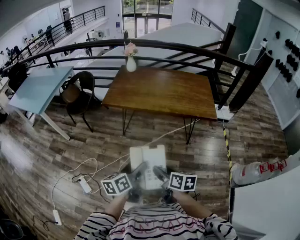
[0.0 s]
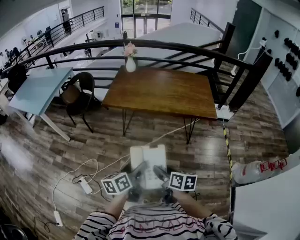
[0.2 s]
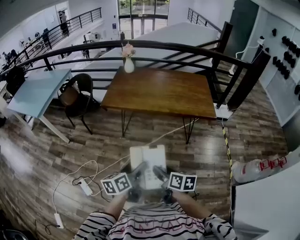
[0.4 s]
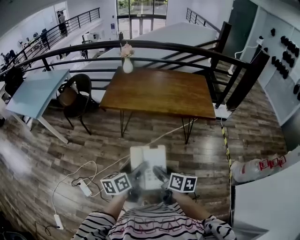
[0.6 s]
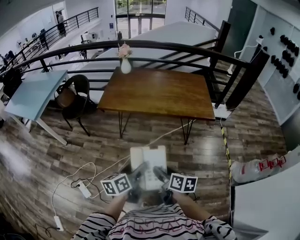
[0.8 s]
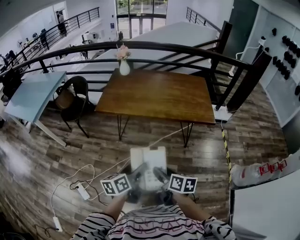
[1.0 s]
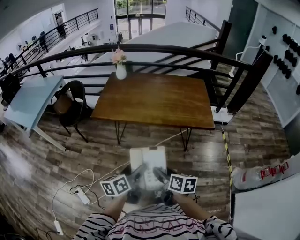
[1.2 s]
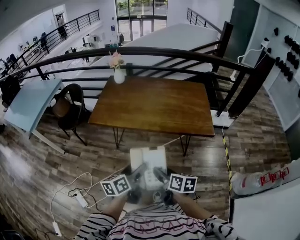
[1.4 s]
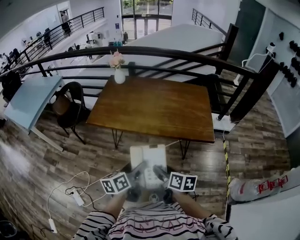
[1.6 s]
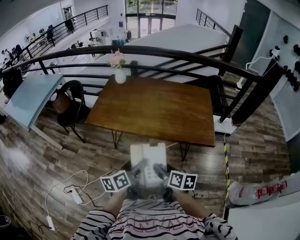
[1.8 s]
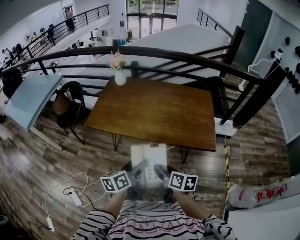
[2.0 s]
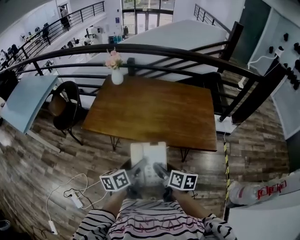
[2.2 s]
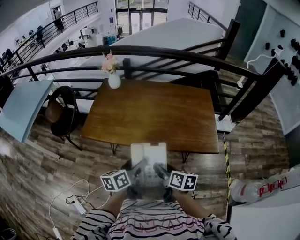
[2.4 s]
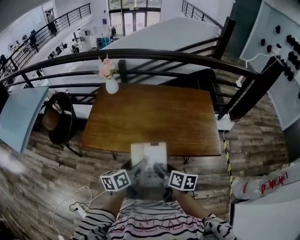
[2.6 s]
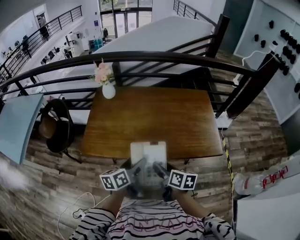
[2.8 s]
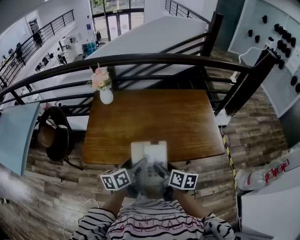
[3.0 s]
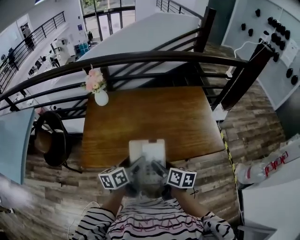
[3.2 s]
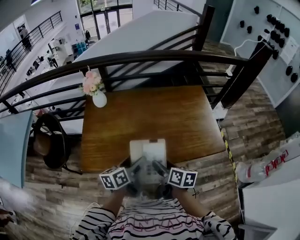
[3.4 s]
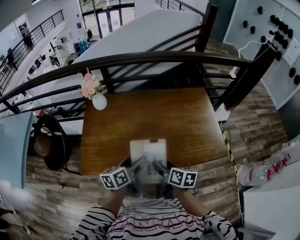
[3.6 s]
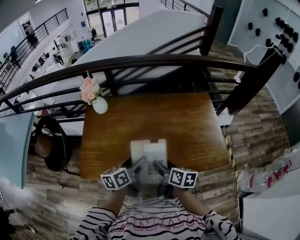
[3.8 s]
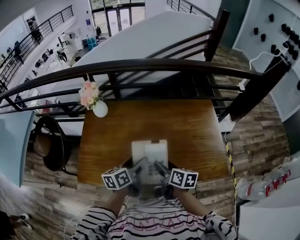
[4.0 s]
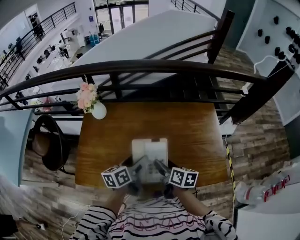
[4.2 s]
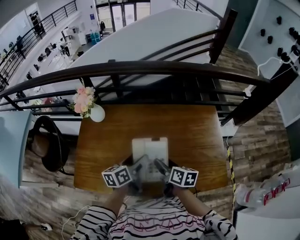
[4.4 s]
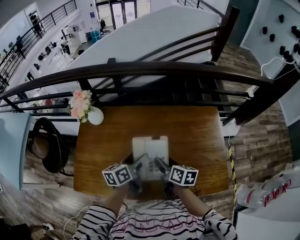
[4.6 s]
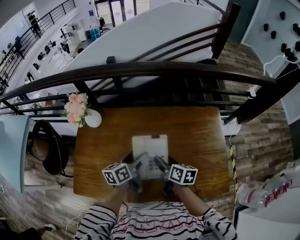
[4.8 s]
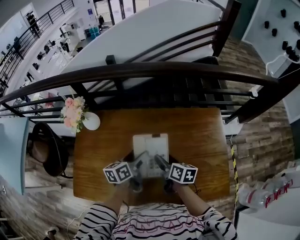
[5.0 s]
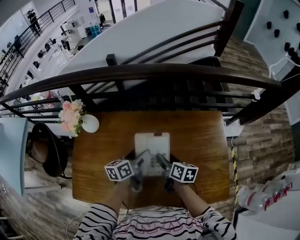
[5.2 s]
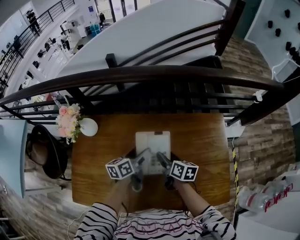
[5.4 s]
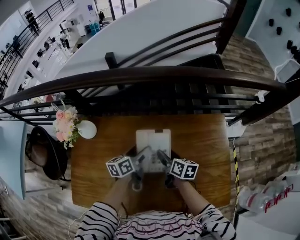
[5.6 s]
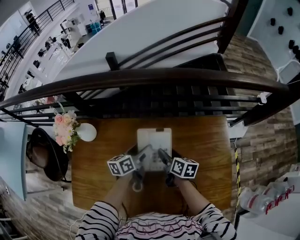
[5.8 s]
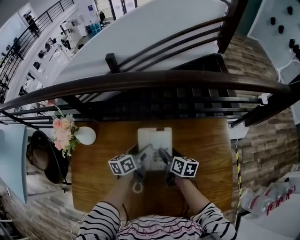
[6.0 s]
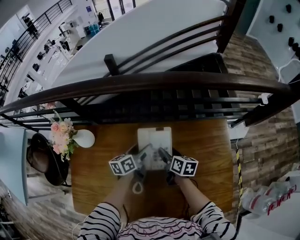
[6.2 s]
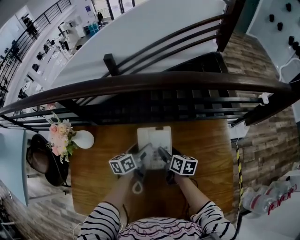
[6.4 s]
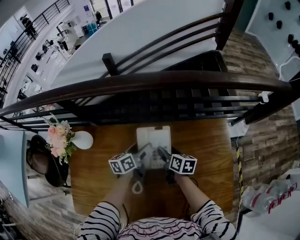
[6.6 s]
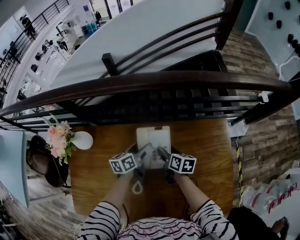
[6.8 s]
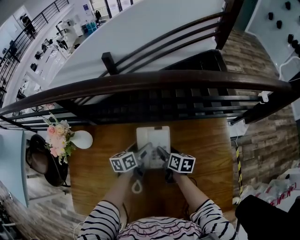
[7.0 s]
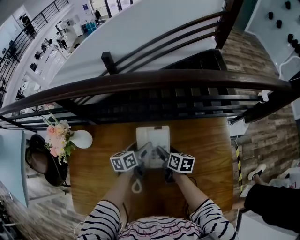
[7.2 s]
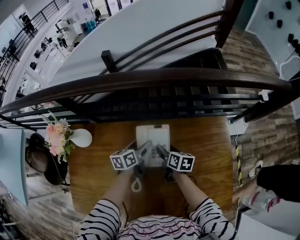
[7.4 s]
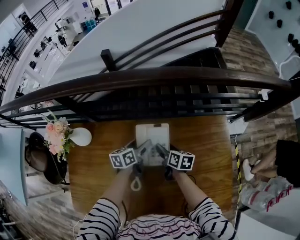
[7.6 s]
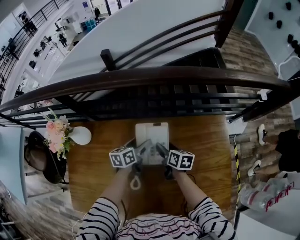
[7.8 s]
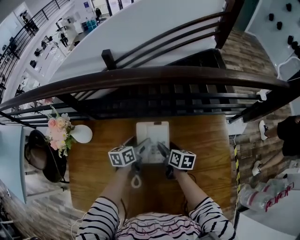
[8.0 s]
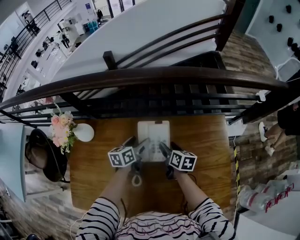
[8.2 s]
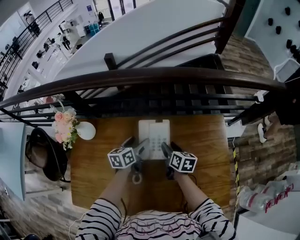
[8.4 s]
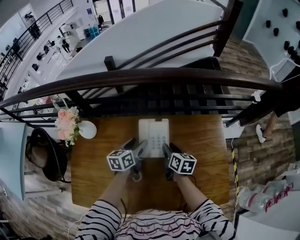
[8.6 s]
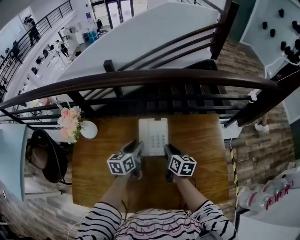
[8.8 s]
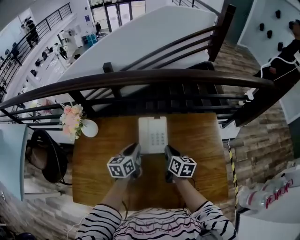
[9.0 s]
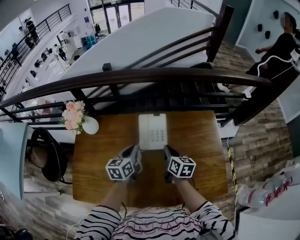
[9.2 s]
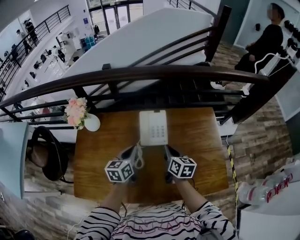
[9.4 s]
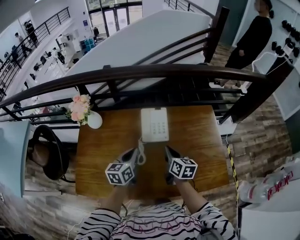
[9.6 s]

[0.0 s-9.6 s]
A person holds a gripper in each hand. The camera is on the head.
0.0 to 1.6 s: Both grippers move forward and to the right, about 30 cm.
1.6 to 3.2 s: Both grippers travel together forward, approximately 35 cm.
3.2 to 4.8 s: The two grippers go roughly 35 cm forward.
4.8 to 6.4 s: Both grippers move forward, roughly 25 cm.
6.4 to 8.0 s: The grippers move only a little.
8.0 to 9.6 s: Both grippers move backward and upward, roughly 30 cm. The right gripper closes. The left gripper closes up.

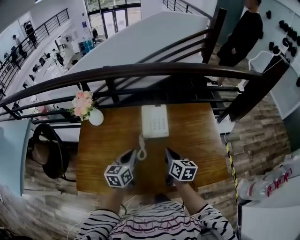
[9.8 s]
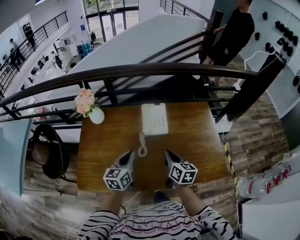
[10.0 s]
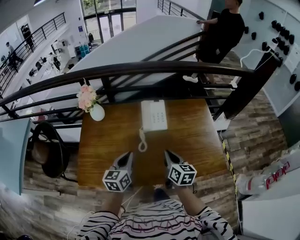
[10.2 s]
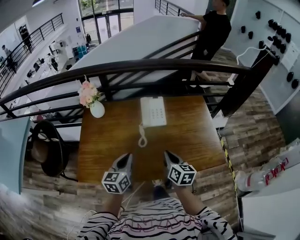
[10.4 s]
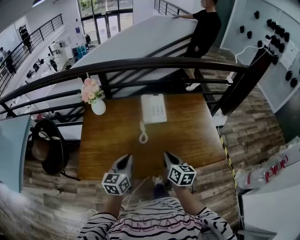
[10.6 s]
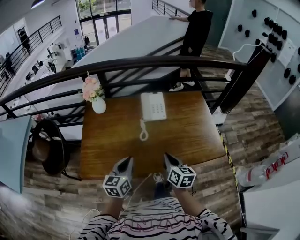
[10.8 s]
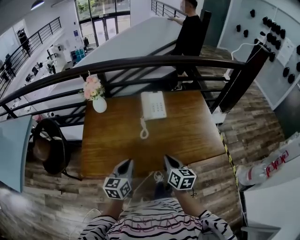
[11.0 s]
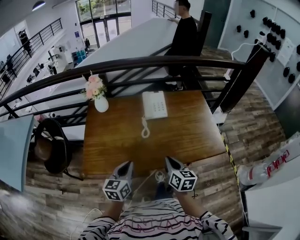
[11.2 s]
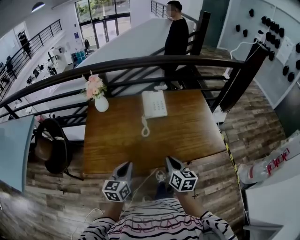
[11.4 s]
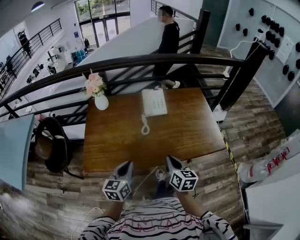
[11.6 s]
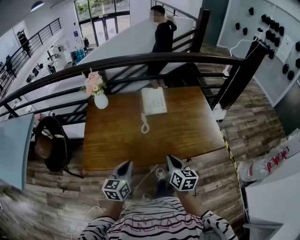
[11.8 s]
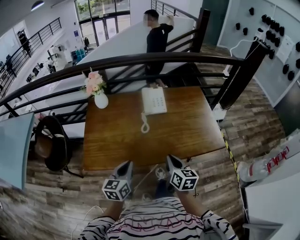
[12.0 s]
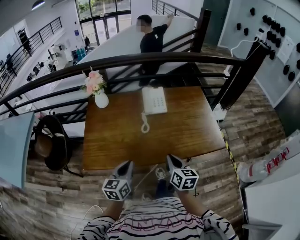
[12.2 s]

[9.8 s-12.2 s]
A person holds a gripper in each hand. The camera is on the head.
9.8 to 11.0 s: Both grippers move backward, about 25 cm.
11.0 to 12.2 s: The right gripper shifts by approximately 5 cm; the left gripper moves backward, approximately 5 cm.

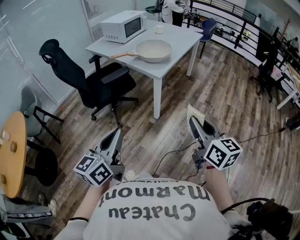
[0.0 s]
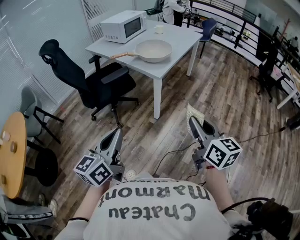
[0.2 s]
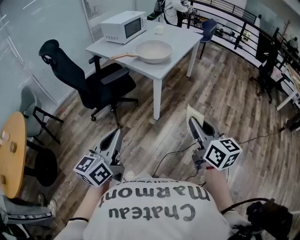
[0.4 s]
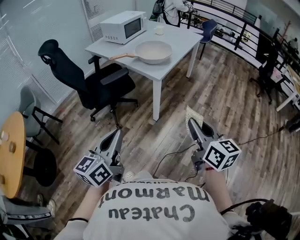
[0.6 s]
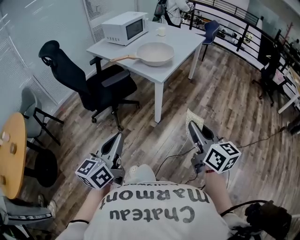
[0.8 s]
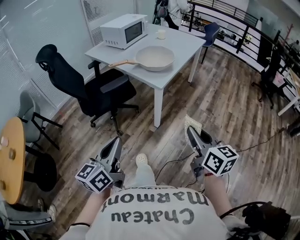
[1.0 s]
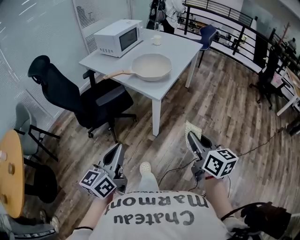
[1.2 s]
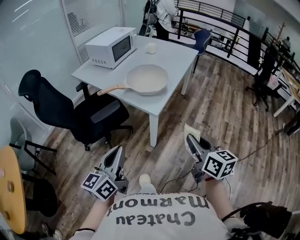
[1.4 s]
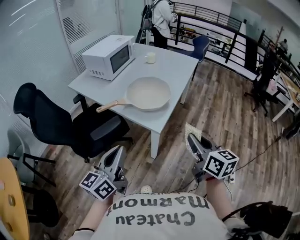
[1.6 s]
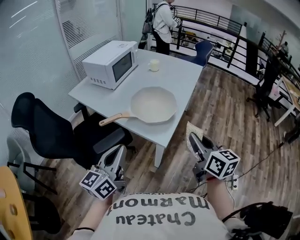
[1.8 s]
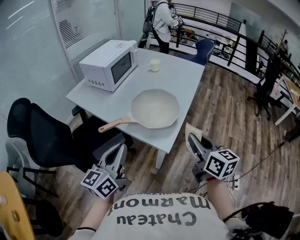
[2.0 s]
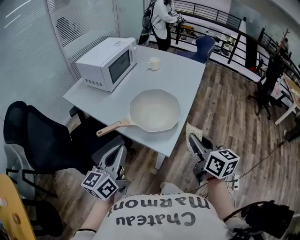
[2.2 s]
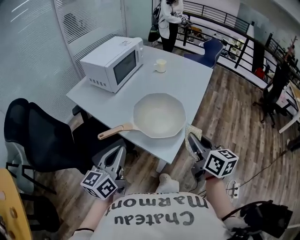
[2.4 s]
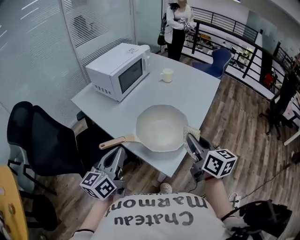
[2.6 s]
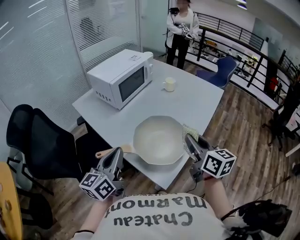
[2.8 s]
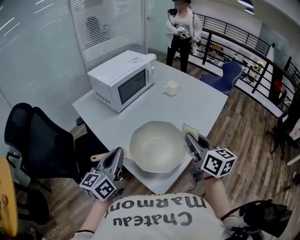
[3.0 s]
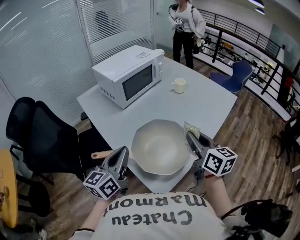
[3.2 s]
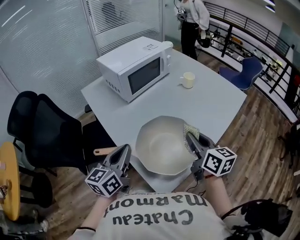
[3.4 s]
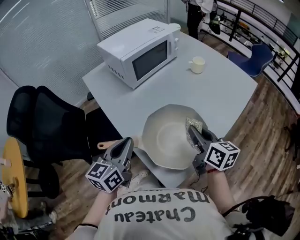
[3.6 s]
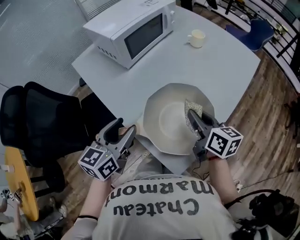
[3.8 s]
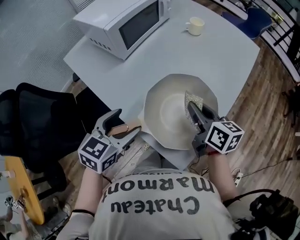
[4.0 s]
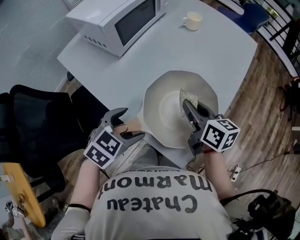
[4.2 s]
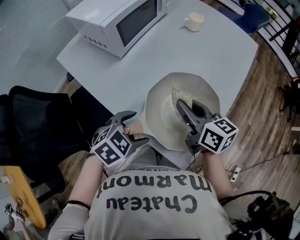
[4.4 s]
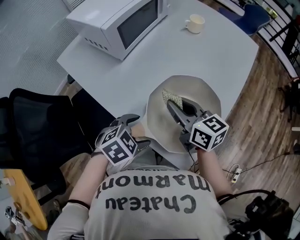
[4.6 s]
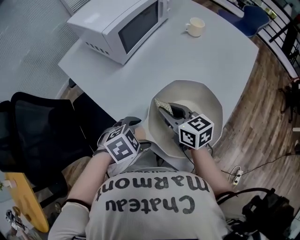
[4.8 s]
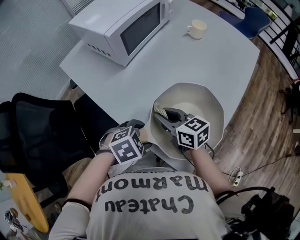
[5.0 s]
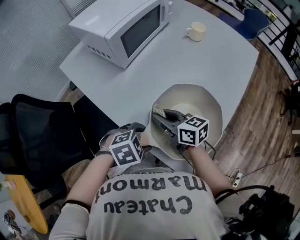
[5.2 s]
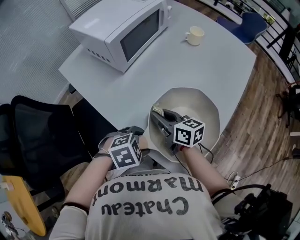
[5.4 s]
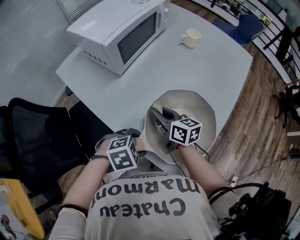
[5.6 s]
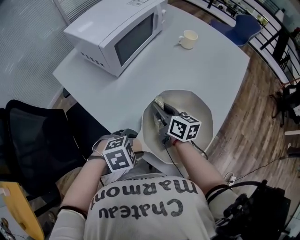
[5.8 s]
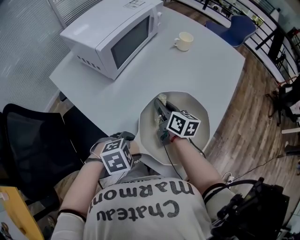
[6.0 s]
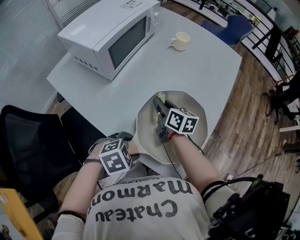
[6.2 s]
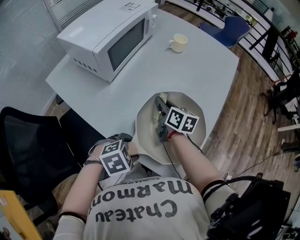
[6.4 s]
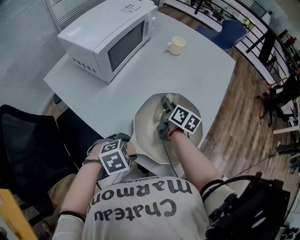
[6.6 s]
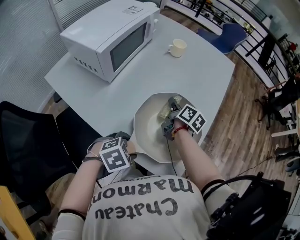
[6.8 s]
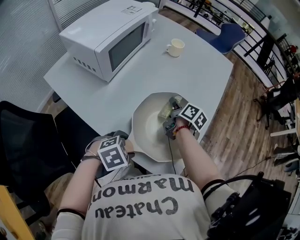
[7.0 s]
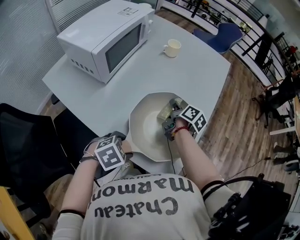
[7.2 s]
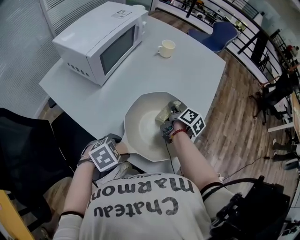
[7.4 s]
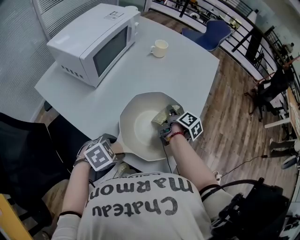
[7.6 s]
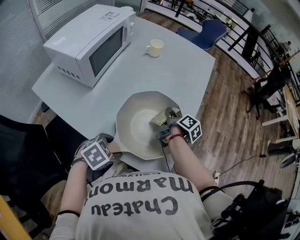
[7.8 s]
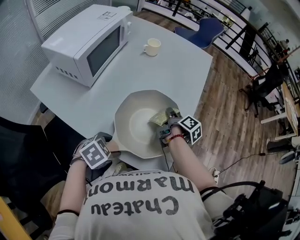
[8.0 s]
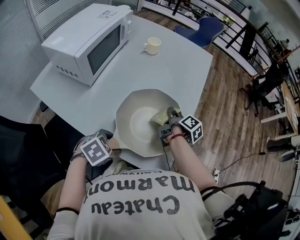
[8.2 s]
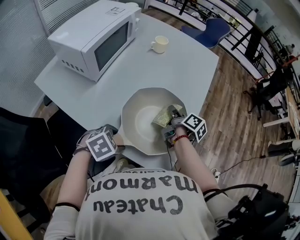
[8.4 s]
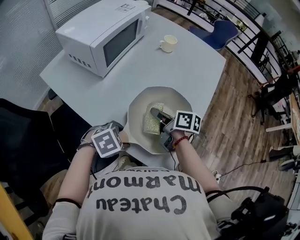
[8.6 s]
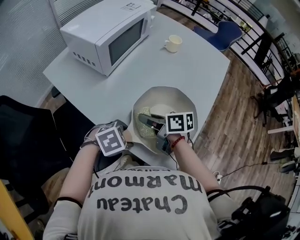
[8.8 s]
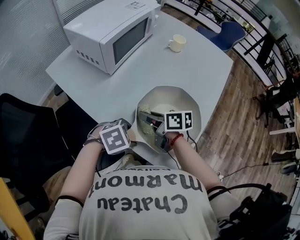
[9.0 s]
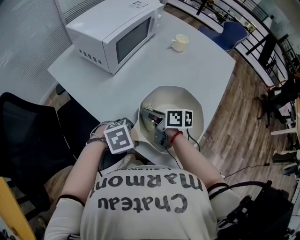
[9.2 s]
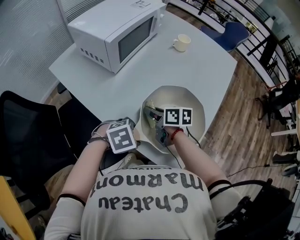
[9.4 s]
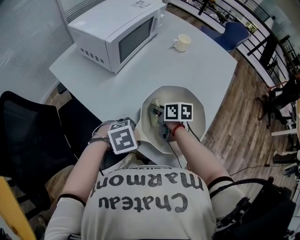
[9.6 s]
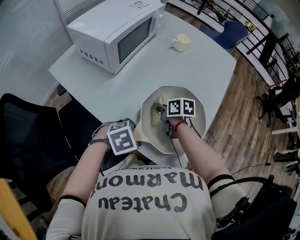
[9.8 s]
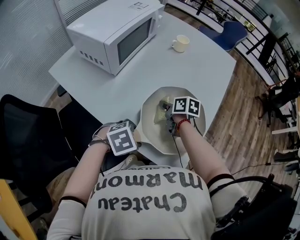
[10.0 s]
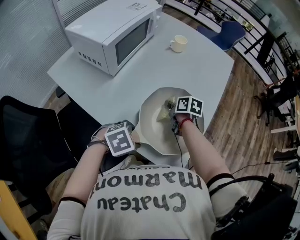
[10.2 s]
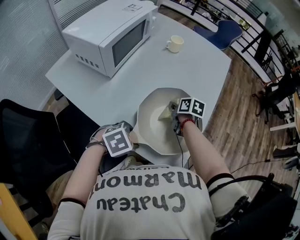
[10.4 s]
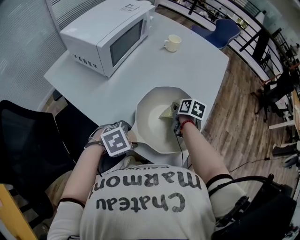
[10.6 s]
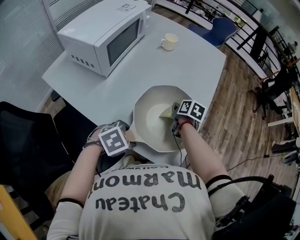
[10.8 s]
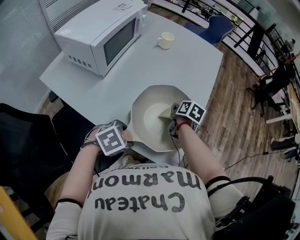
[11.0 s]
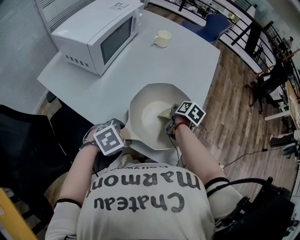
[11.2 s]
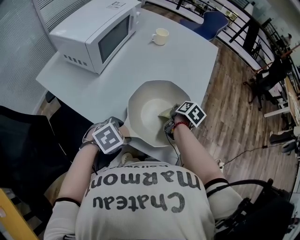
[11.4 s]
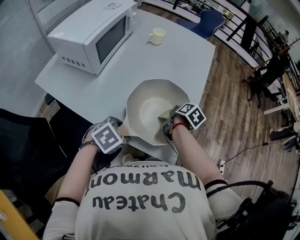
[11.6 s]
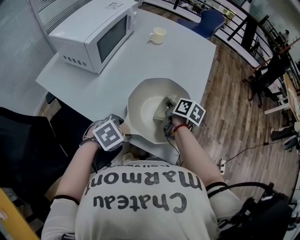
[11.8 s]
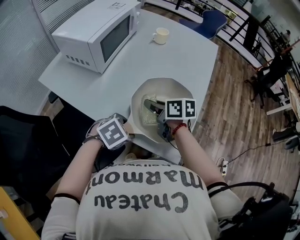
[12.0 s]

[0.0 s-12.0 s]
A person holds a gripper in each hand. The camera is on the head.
0.0 to 1.6 s: Both grippers travel together forward, roughly 30 cm.
1.6 to 3.0 s: Both grippers move forward, approximately 35 cm.
3.0 to 4.4 s: The right gripper shifts approximately 20 cm to the left, downward and forward; the left gripper goes some 20 cm downward, points its fingers some 60 degrees further downward, and opens up.
4.4 to 6.0 s: The left gripper swivels roughly 20 degrees; the right gripper ends up about 15 cm from where it was.
6.0 to 7.6 s: The right gripper is displaced to the right and forward by approximately 15 cm, and rotates some 50 degrees.
7.6 to 9.0 s: The right gripper shifts by about 25 cm, and swivels about 60 degrees.
9.0 to 10.4 s: The right gripper changes place by some 20 cm, and swivels about 40 degrees.
10.4 to 12.0 s: The right gripper changes place by roughly 15 cm, and turns by approximately 30 degrees.
